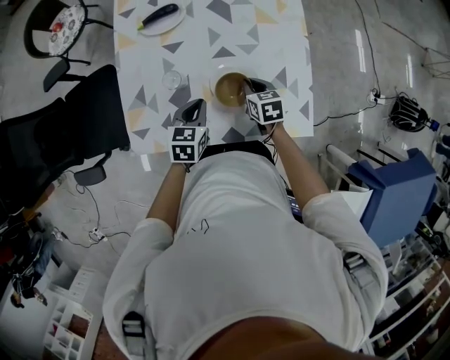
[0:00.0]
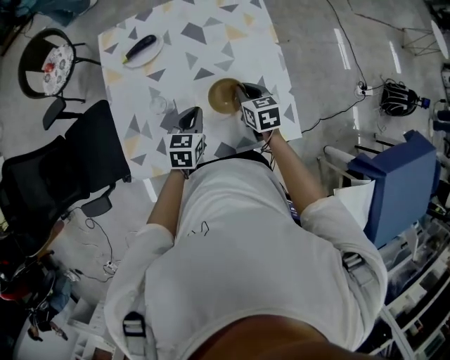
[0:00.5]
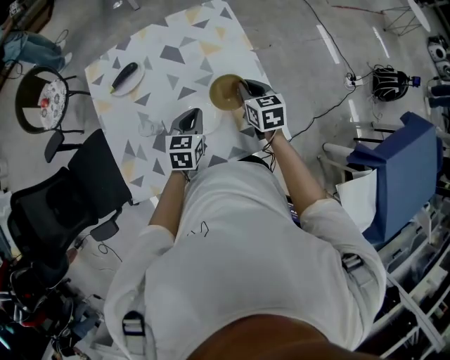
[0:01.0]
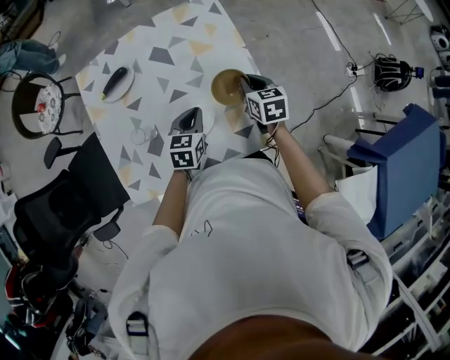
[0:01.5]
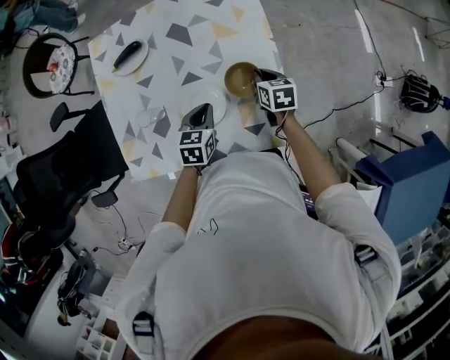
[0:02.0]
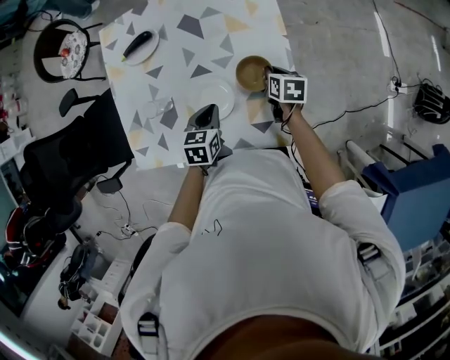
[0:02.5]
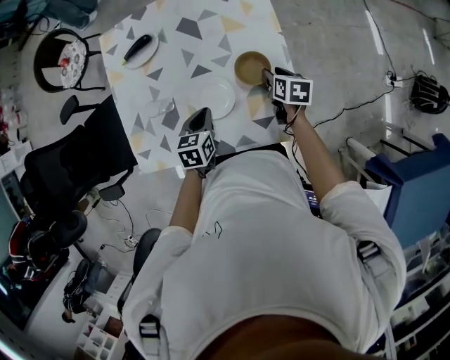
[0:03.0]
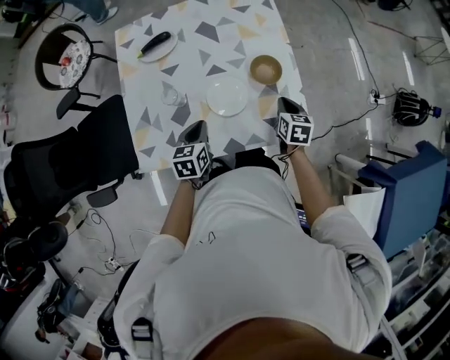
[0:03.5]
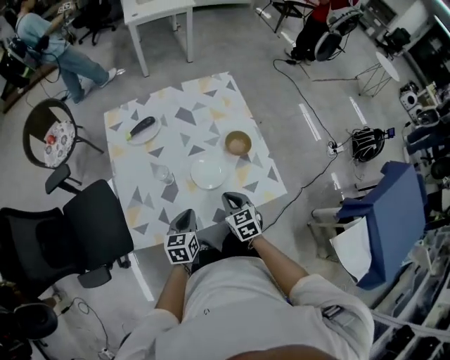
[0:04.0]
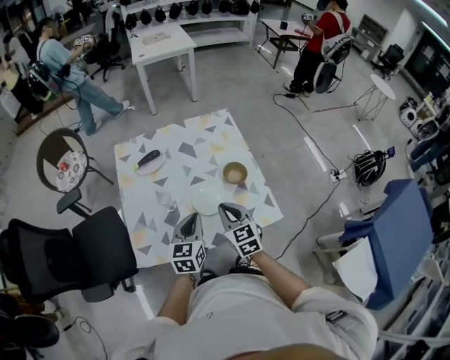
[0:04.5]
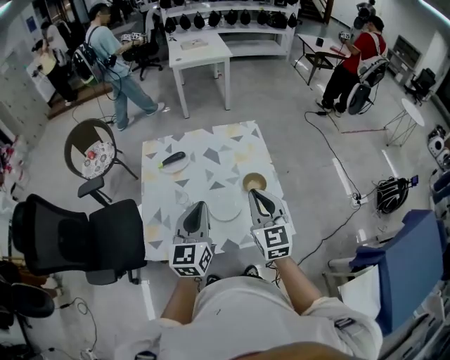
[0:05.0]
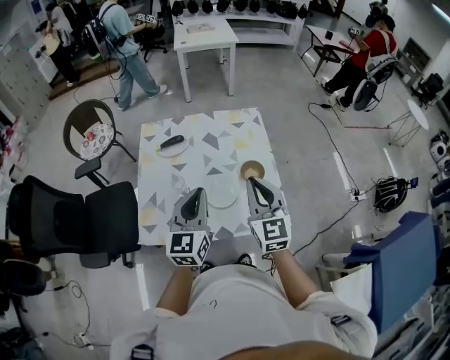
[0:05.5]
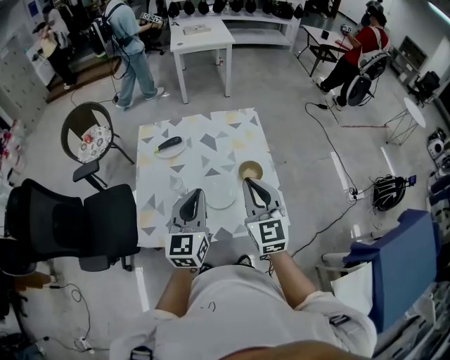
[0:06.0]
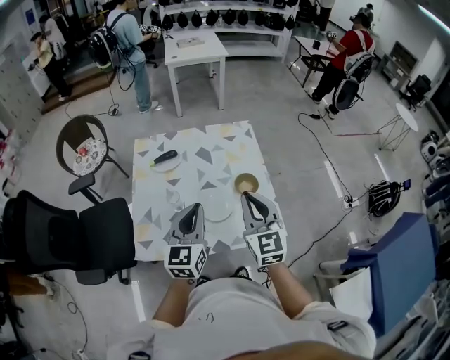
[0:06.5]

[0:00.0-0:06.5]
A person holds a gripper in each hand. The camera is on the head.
0:00.0 to 0:02.0: The two grippers go roughly 15 cm to the right and forward.
0:02.0 to 0:04.5: The left gripper goes roughly 25 cm upward, backward and to the left, and turns by roughly 30 degrees. The right gripper goes some 35 cm backward, upward and to the left, rotates some 30 degrees, and opens, then closes again.
0:04.5 to 0:06.5: Both grippers travel together upward, roughly 15 cm.

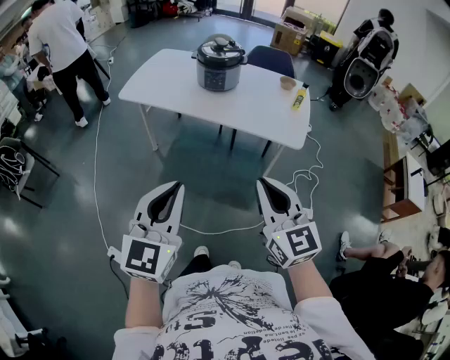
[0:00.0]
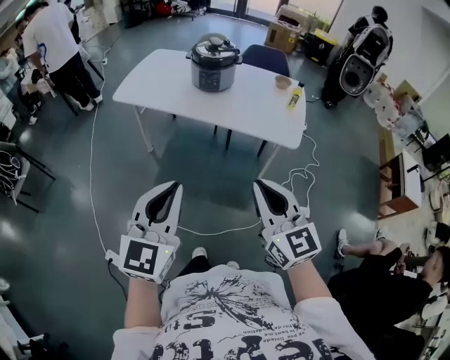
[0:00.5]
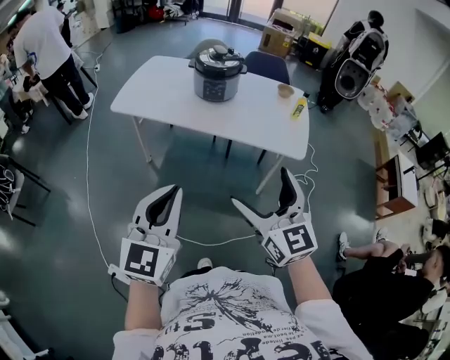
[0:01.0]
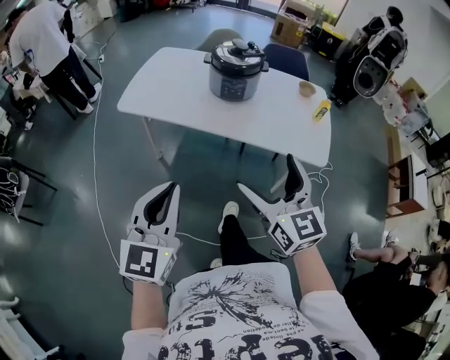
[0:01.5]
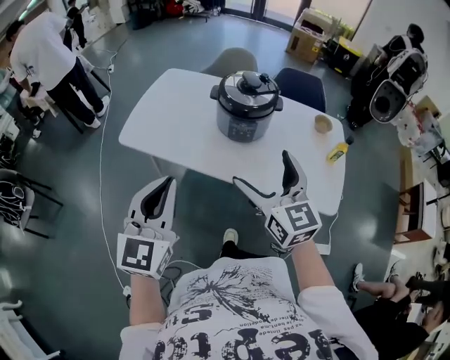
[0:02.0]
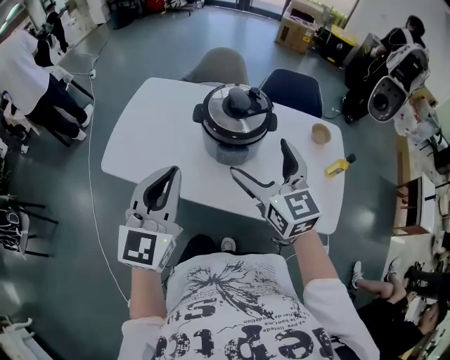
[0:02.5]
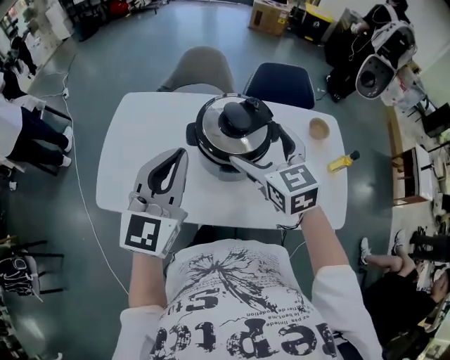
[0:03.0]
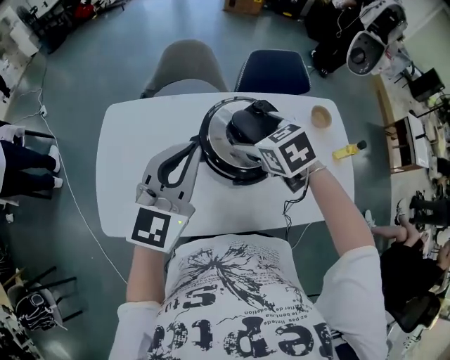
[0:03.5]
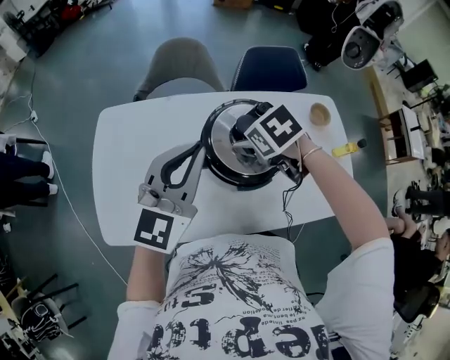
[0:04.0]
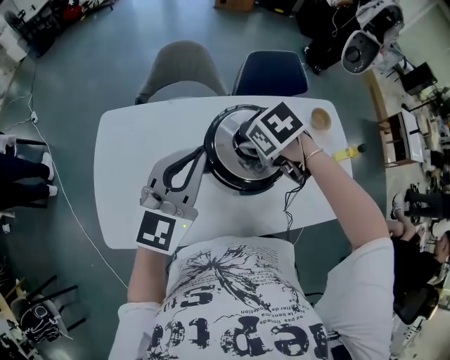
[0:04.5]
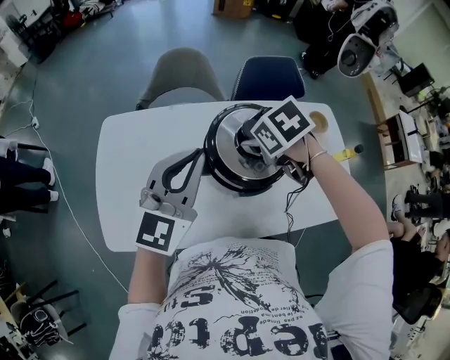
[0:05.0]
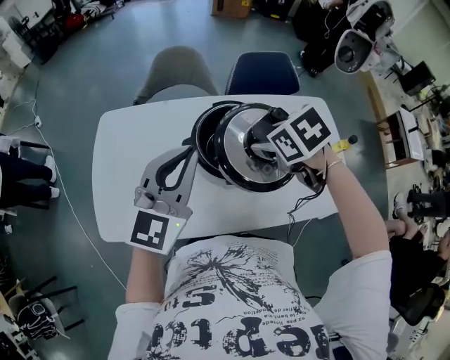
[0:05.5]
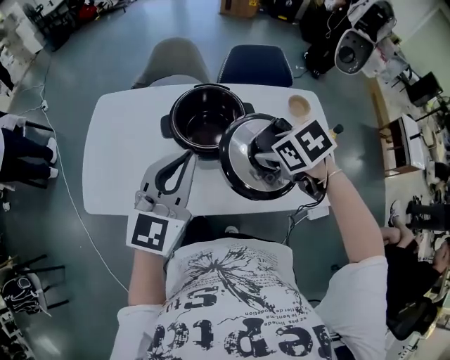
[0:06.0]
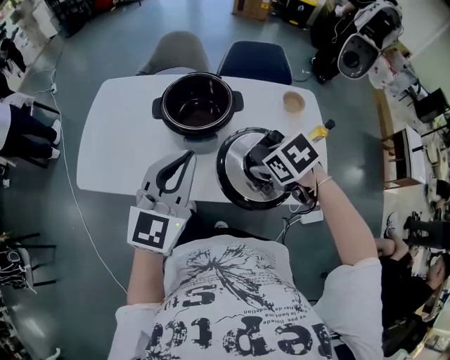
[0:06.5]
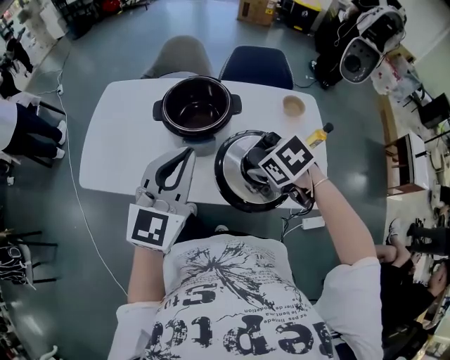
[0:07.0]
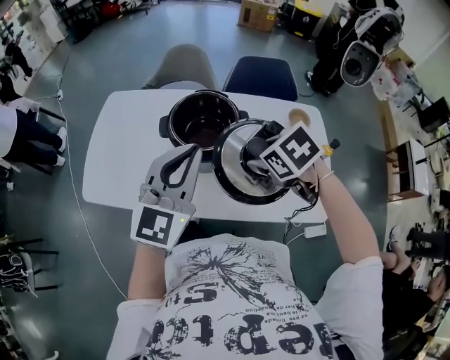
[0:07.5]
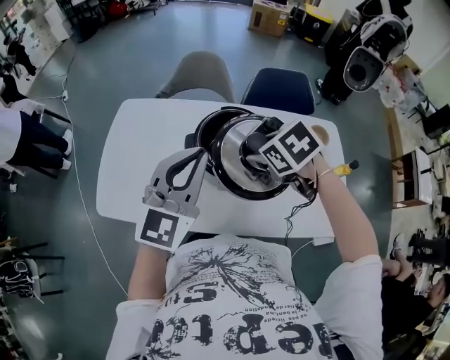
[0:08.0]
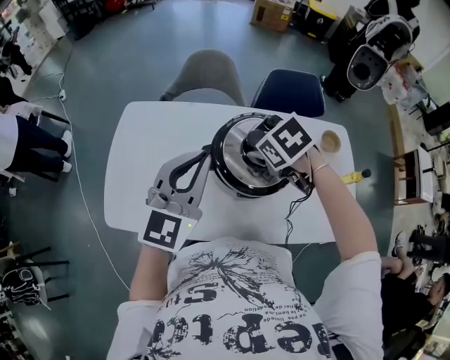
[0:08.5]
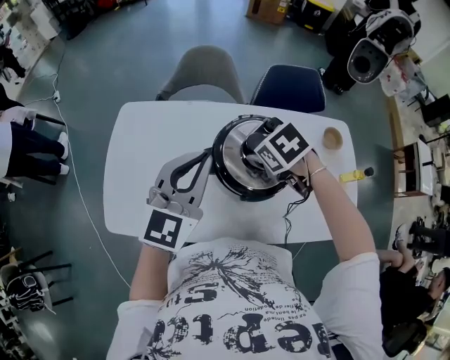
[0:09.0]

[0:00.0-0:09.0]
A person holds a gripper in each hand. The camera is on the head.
0:00.0 to 0:02.0: Both grippers are carried forward, about 50 cm. The right gripper opens.
0:02.0 to 0:04.5: Both grippers are carried forward, approximately 50 cm. The right gripper points its fingers some 70 degrees further downward, and closes up, while the left gripper rotates some 40 degrees.
0:04.5 to 0:07.0: The two grippers go approximately 35 cm backward and to the right.
0:07.0 to 0:09.0: The grippers both shift forward and to the left by about 30 cm.

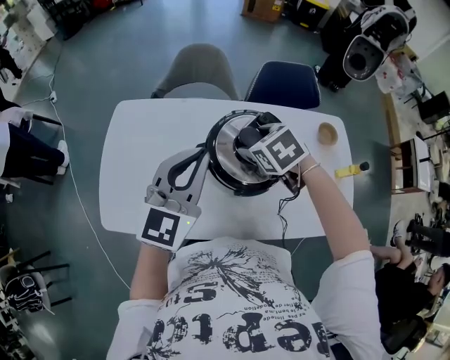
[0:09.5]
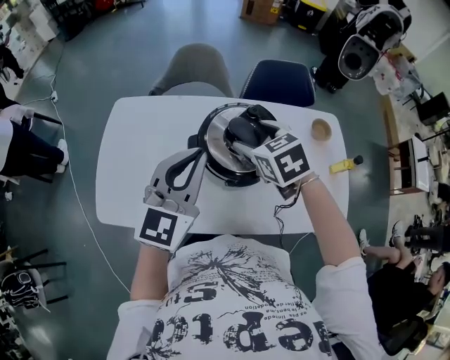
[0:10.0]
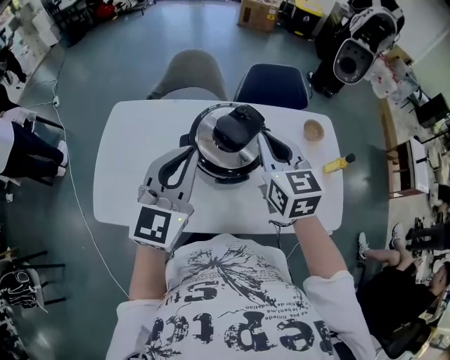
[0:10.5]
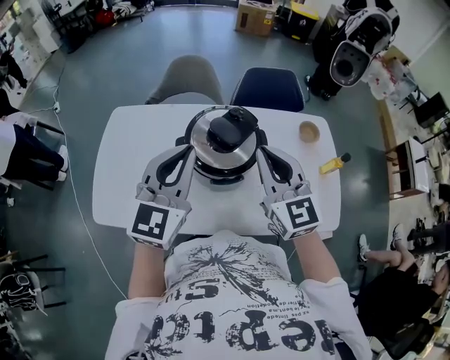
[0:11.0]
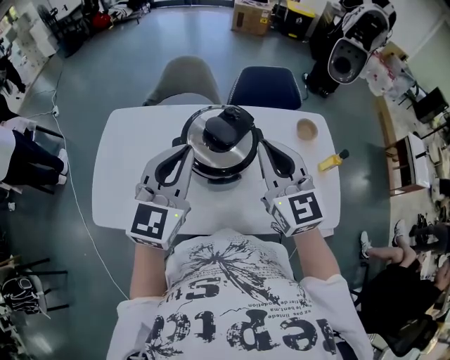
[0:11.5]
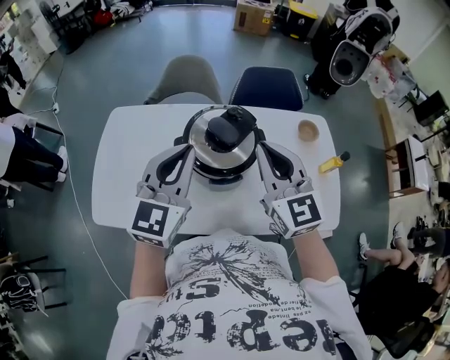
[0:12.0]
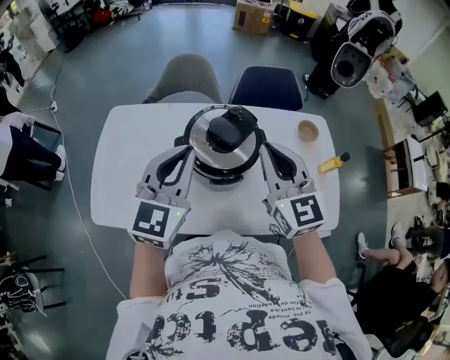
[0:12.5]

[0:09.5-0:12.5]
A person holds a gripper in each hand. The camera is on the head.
0:09.5 to 0:11.0: The left gripper shifts approximately 10 cm backward and to the right, while the right gripper moves backward, upward and to the right, approximately 20 cm, tilts its fingers some 60 degrees upward, and closes up.
0:11.0 to 0:12.5: There are only small adjustments of the grippers.

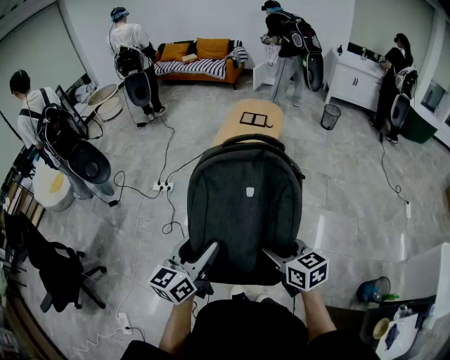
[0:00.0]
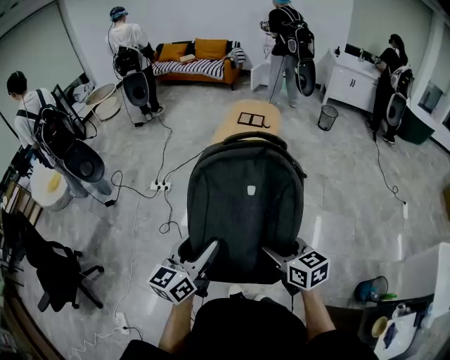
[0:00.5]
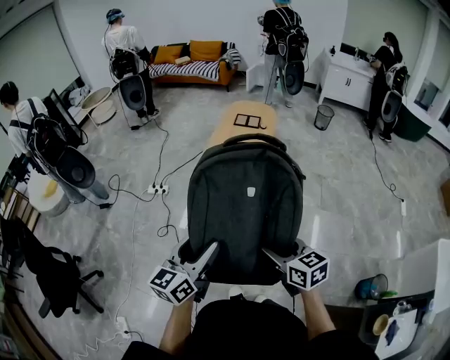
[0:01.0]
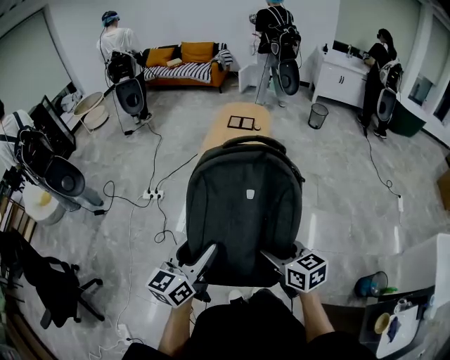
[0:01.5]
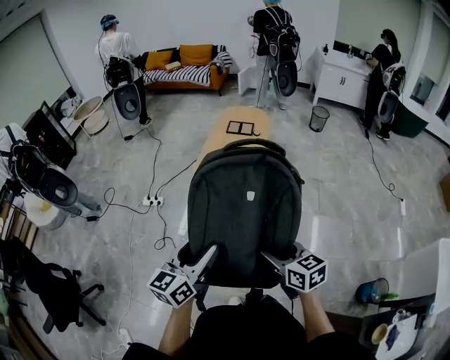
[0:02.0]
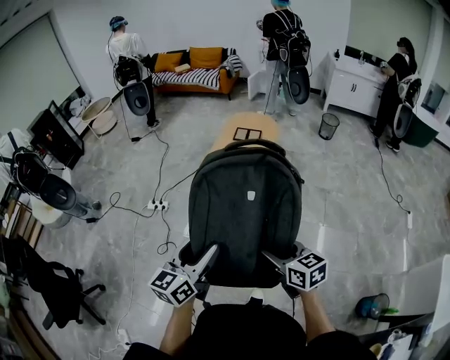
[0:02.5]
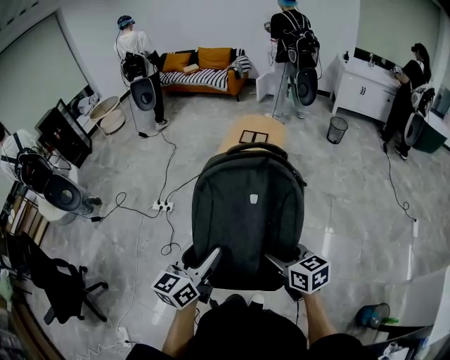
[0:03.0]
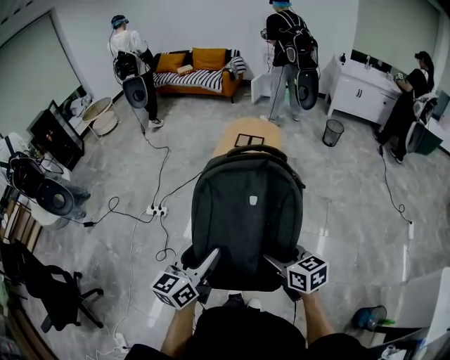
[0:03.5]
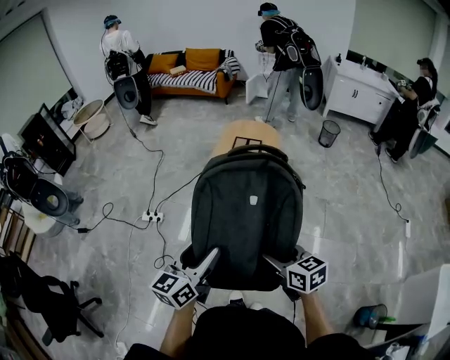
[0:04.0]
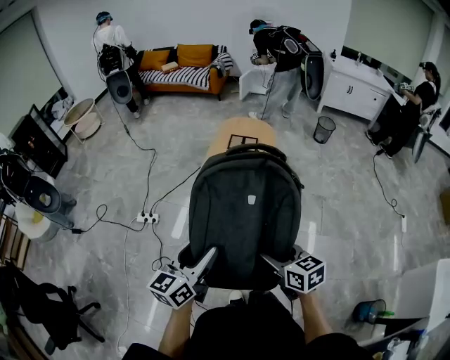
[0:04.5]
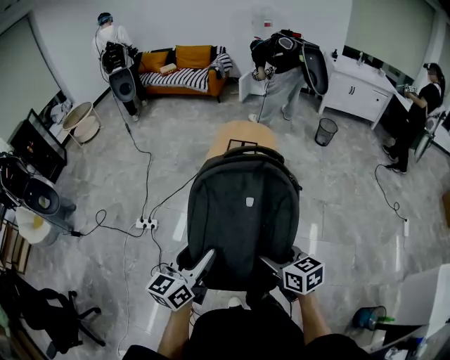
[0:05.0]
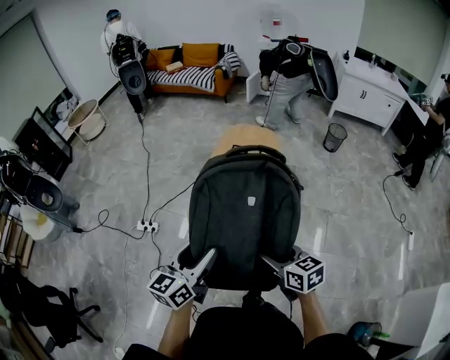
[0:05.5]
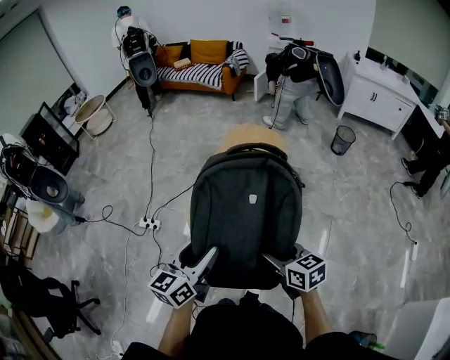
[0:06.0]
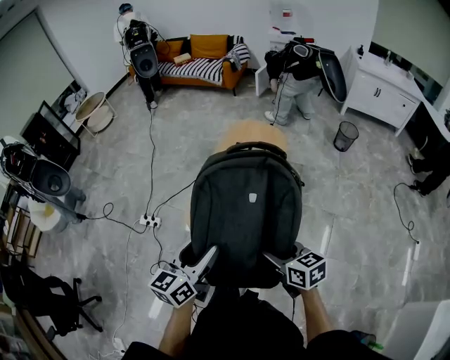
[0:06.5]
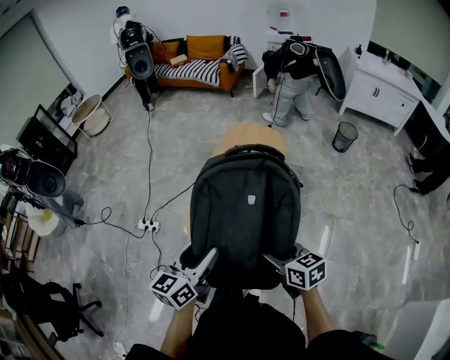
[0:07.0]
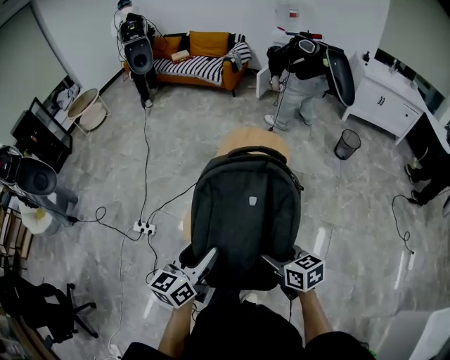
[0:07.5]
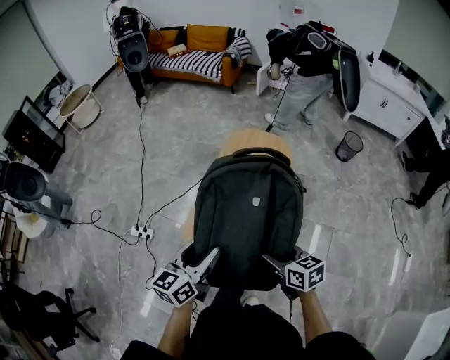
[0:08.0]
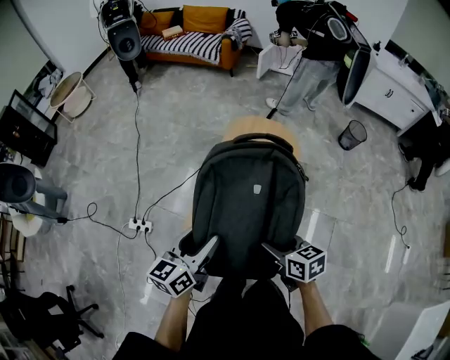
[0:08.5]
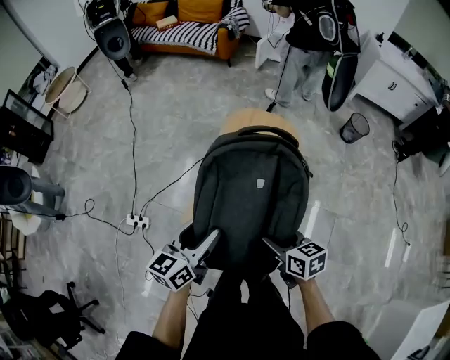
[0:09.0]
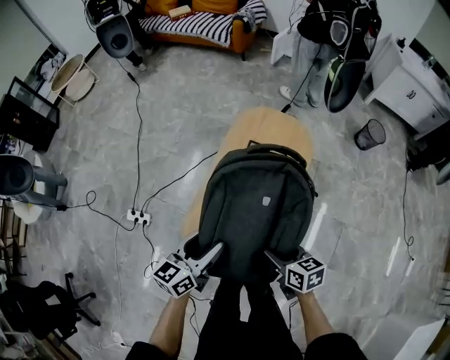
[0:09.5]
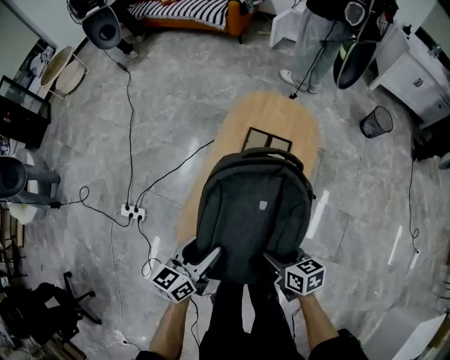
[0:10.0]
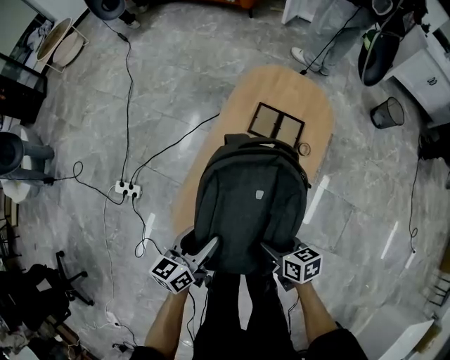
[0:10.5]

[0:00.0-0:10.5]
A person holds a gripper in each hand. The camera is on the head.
0:00.0 to 0:02.0: Both grippers move forward, about 5 cm.
0:02.0 to 0:04.0: The two grippers go roughly 15 cm forward.
0:04.0 to 0:06.5: Both grippers move forward and to the right, about 20 cm.
0:06.5 to 0:08.5: Both grippers move forward, approximately 25 cm.
0:08.5 to 0:10.5: Both grippers move downward, some 25 cm.
